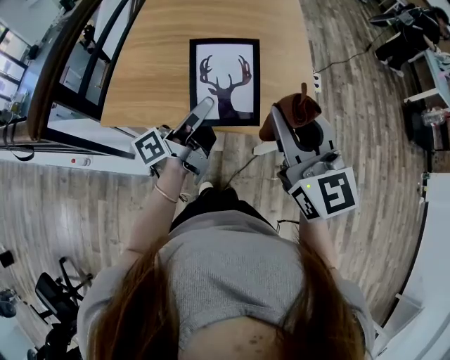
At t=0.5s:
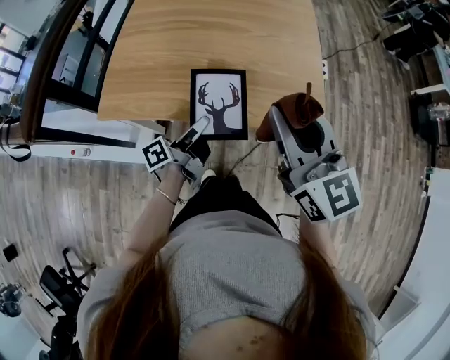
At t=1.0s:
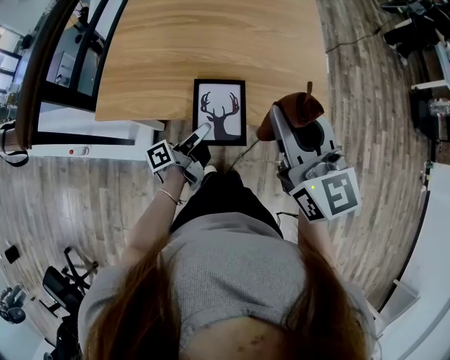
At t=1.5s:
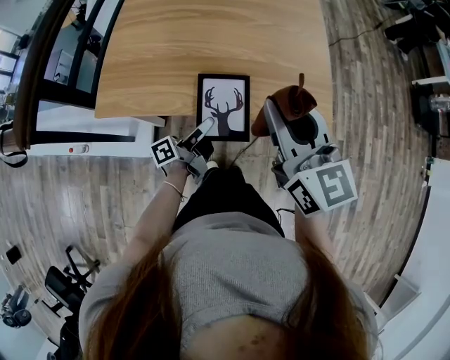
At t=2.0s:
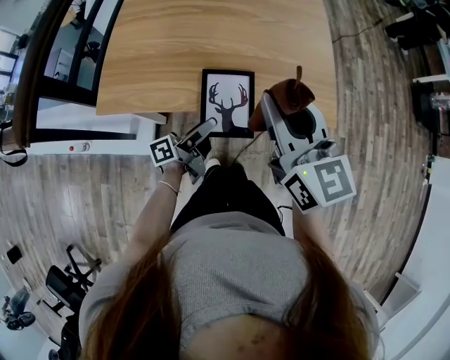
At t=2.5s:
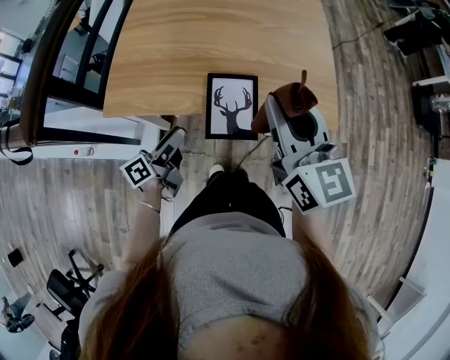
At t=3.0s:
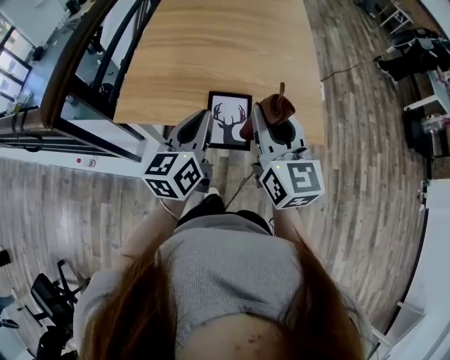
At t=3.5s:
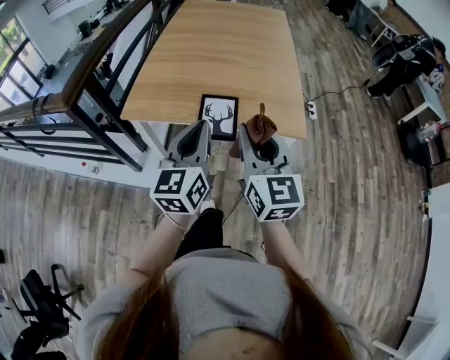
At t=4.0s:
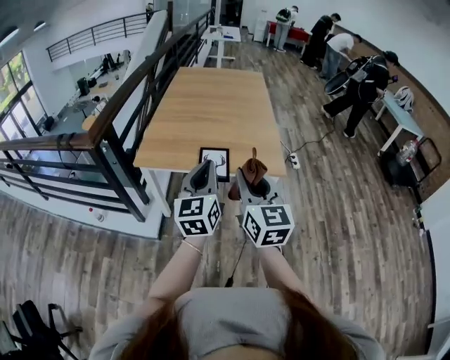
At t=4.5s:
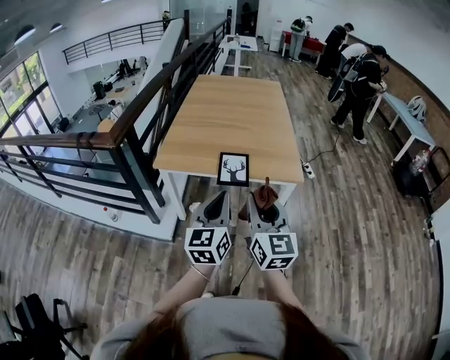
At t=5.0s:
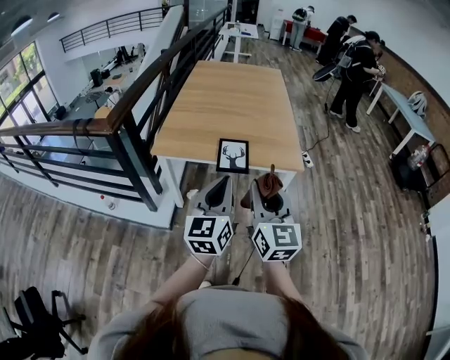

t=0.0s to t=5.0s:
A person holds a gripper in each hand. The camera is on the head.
t=0.0s to t=2.5s: The left gripper moves downward and to the left, some 25 cm, rotates roughly 20 degrees, and opens its fingers. The right gripper moves downward and to the left, approximately 10 cm.
t=2.5s to t=5.0s: The left gripper moves upward, backward and to the right, approximately 40 cm, rolls clockwise, seen from behind, by about 60 degrees, and closes. The right gripper moves backward, about 30 cm.

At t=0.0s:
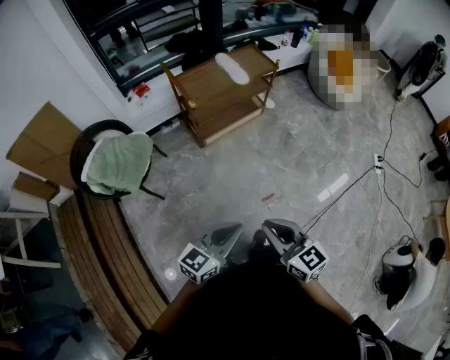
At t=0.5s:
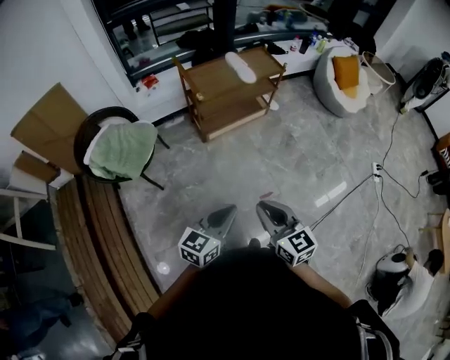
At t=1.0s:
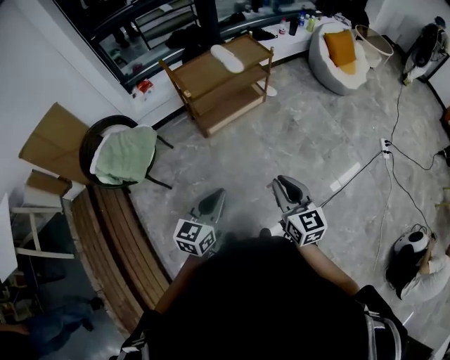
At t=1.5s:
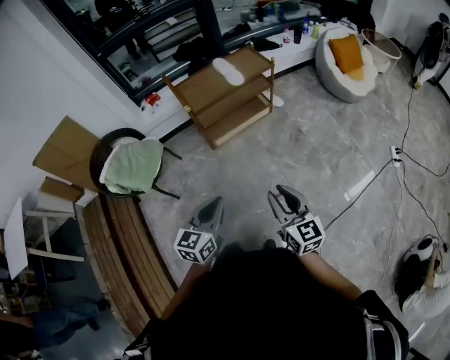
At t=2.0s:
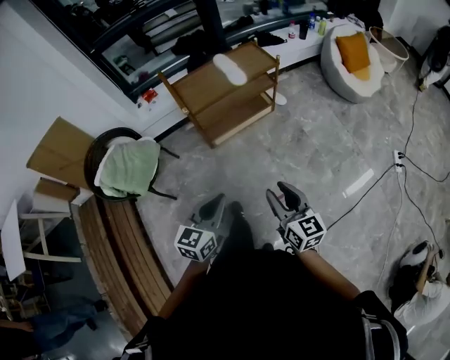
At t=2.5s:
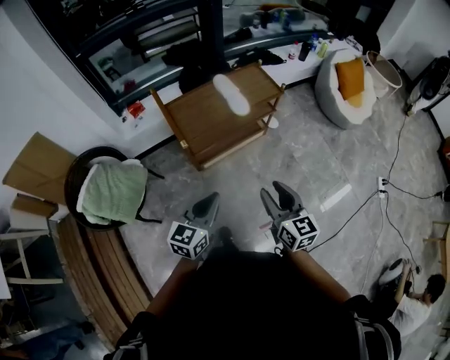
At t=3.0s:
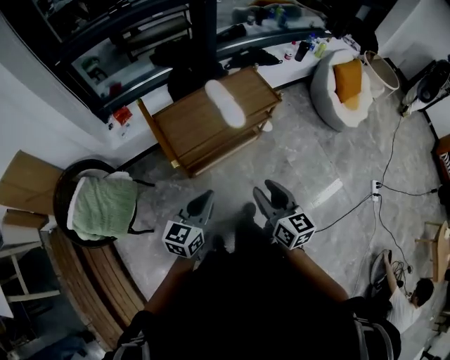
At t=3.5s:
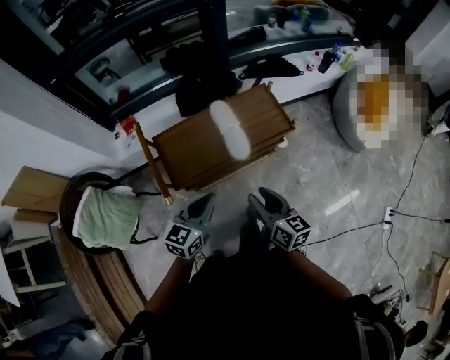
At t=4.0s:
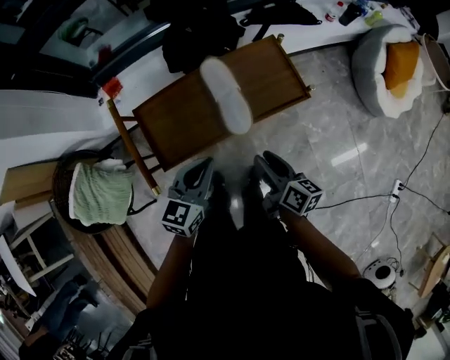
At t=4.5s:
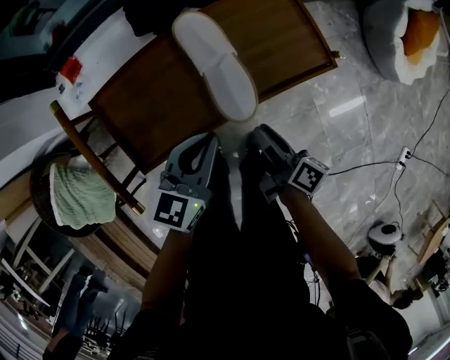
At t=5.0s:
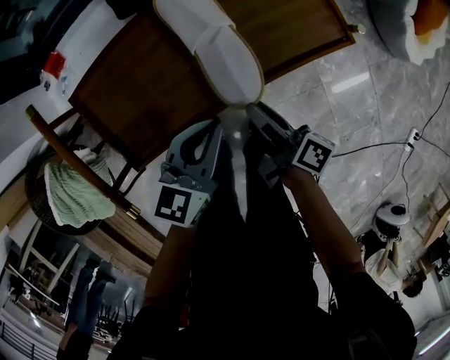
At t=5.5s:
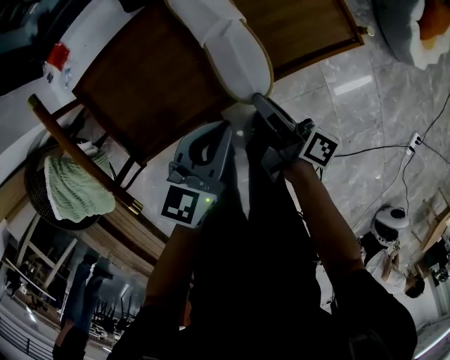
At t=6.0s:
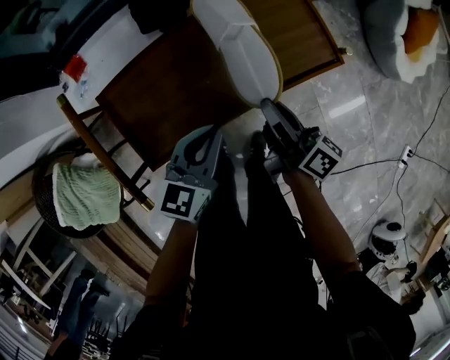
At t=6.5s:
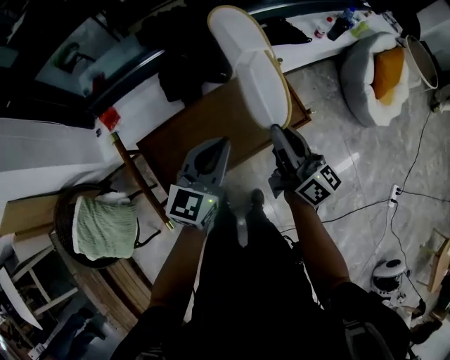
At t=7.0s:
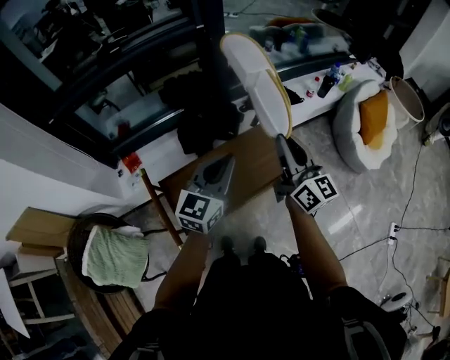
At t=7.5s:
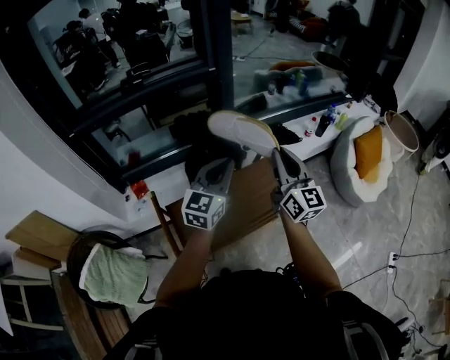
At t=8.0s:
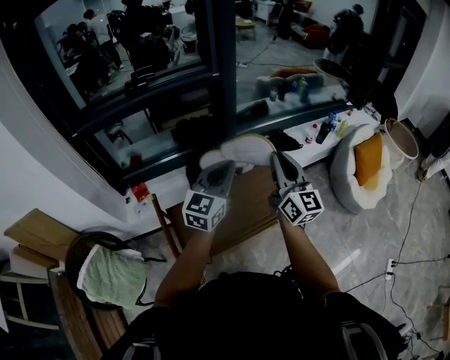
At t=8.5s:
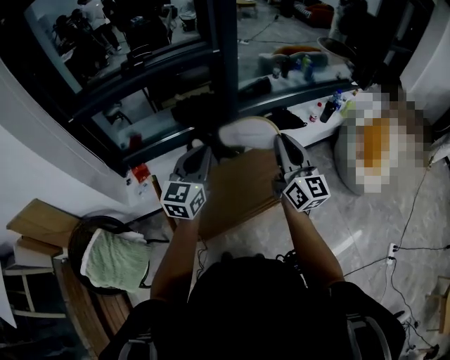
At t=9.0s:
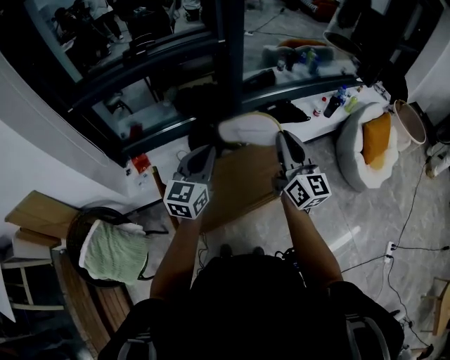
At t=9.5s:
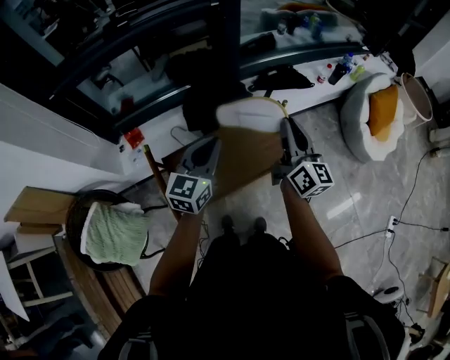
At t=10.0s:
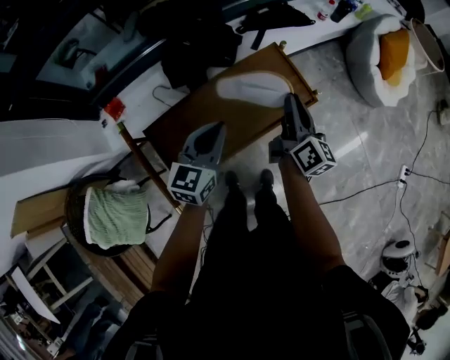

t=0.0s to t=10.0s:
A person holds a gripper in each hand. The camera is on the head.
t=0.0s to t=2.0s: The right gripper is displaced forward and to the right by roughly 15 cm, and opens. The left gripper goes about 10 cm forward, and changes its angle by some 20 degrees.
t=2.0s to t=4.0s: The two grippers travel together, forward, about 60 cm. The right gripper turns by about 40 degrees.
t=4.0s to t=6.0s: The left gripper goes about 15 cm downward and forward. The right gripper travels forward and downward by roughly 15 cm, swivels roughly 20 degrees, and closes.
t=6.0s to t=8.0s: Both grippers travel together upward, some 40 cm. The left gripper changes its angle by about 30 degrees, while the right gripper twists some 60 degrees counterclockwise, seen from behind.
t=8.0s to t=10.0s: Both grippers move downward, some 25 cm. The left gripper swivels roughly 20 degrees, while the right gripper swivels some 40 degrees.

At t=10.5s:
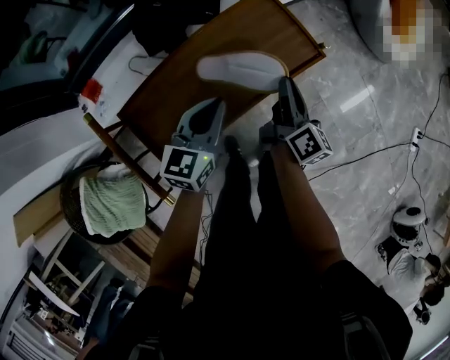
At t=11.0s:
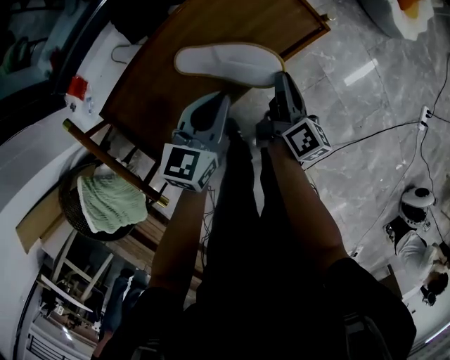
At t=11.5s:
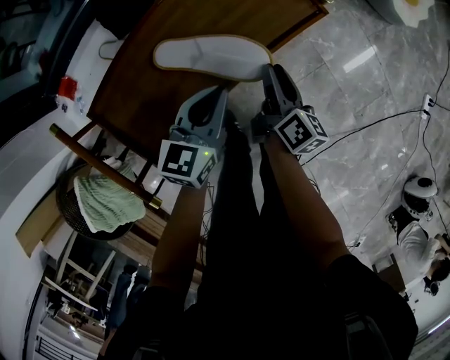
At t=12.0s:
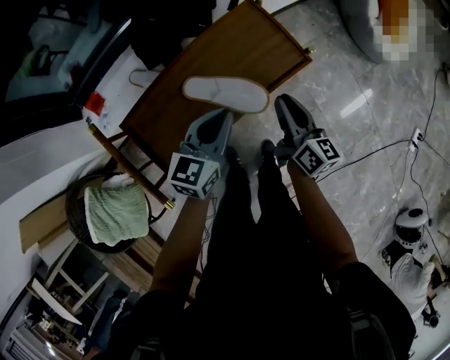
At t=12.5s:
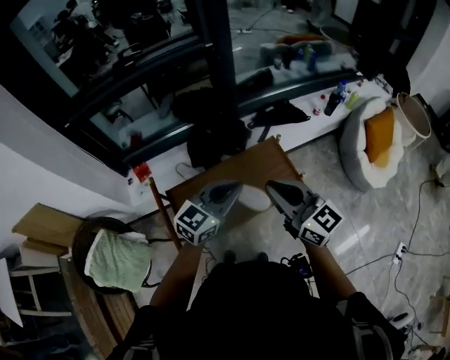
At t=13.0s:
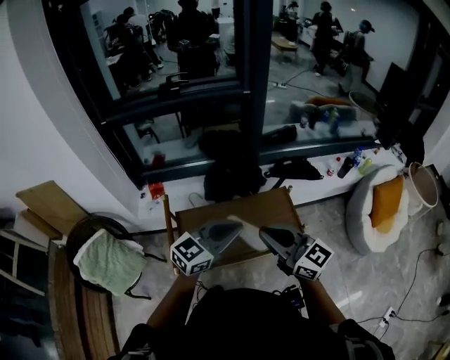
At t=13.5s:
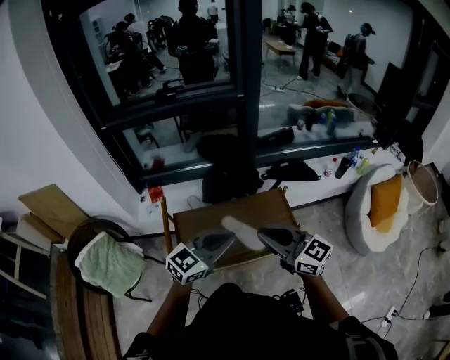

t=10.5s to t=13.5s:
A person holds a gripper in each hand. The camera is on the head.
t=10.5s to t=12.0s: The left gripper moves roughly 10 cm downward and comes back. Meanwhile the right gripper moves approximately 10 cm downward and comes back, and turns by about 20 degrees.
t=12.0s to t=13.5s: The two grippers go approximately 30 cm upward. The left gripper swivels approximately 20 degrees, while the right gripper swivels approximately 70 degrees.

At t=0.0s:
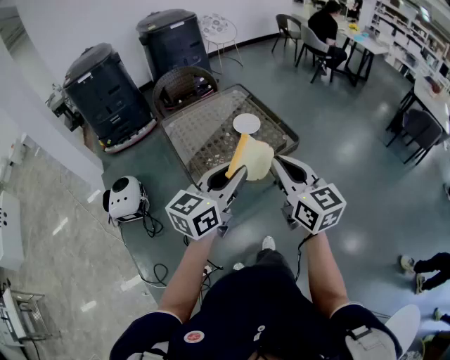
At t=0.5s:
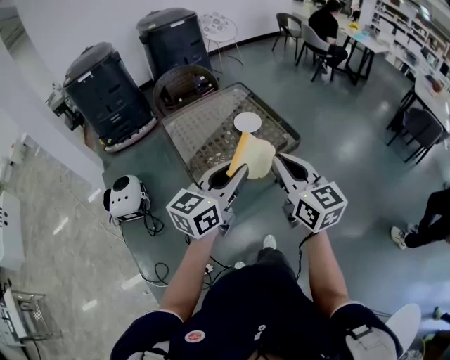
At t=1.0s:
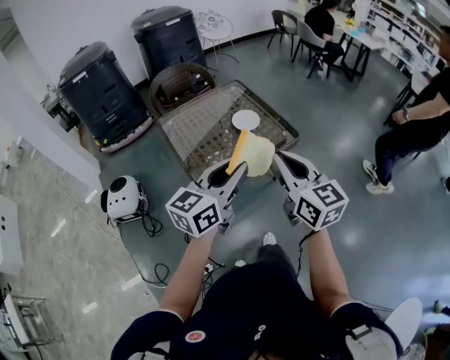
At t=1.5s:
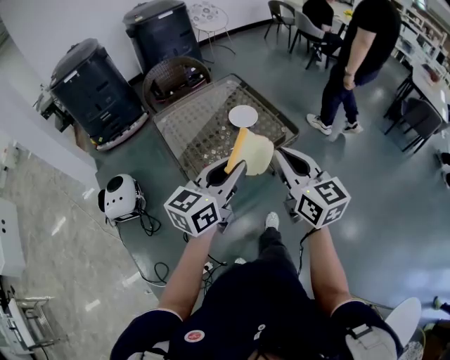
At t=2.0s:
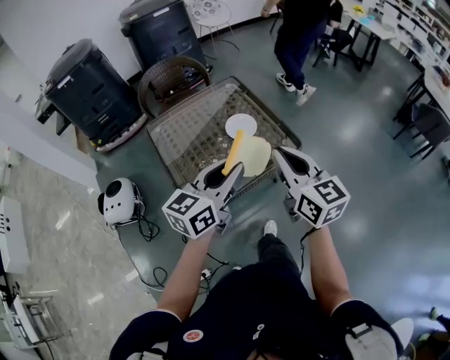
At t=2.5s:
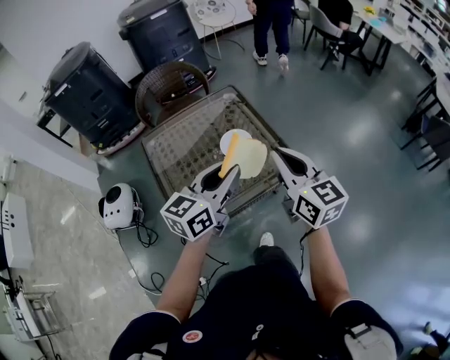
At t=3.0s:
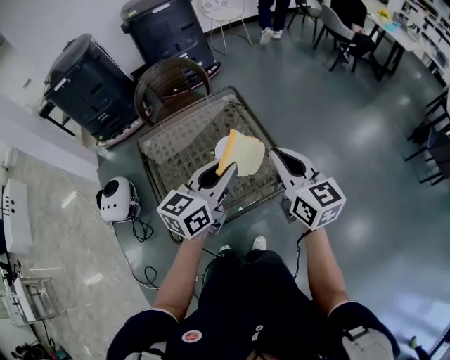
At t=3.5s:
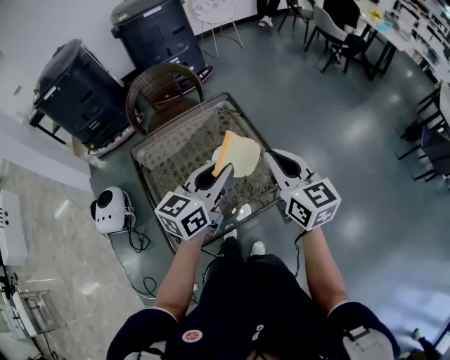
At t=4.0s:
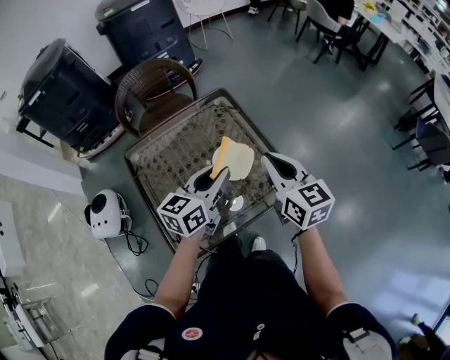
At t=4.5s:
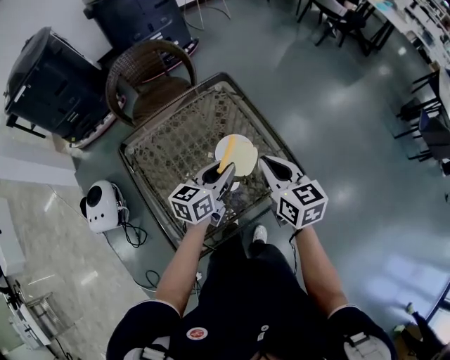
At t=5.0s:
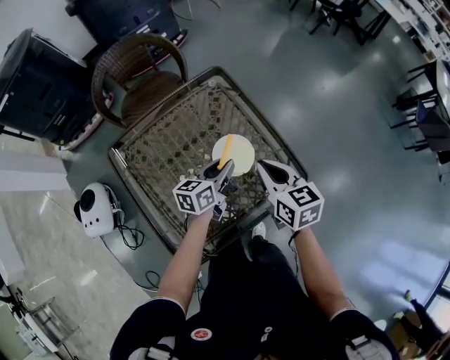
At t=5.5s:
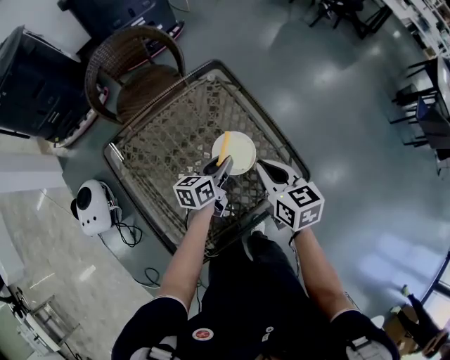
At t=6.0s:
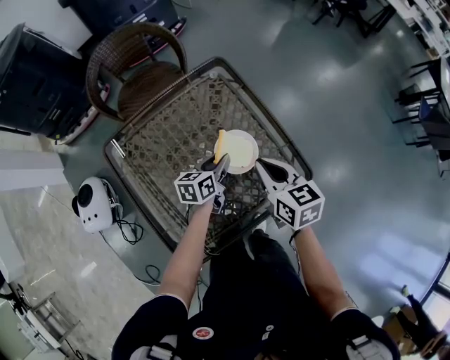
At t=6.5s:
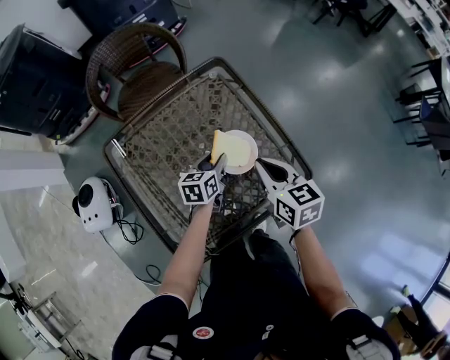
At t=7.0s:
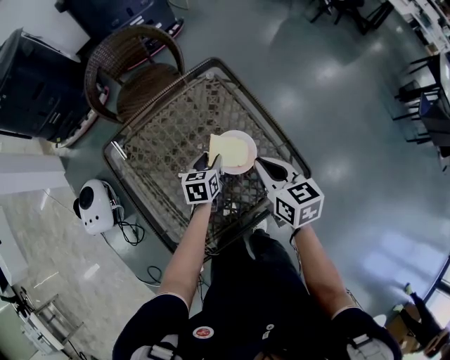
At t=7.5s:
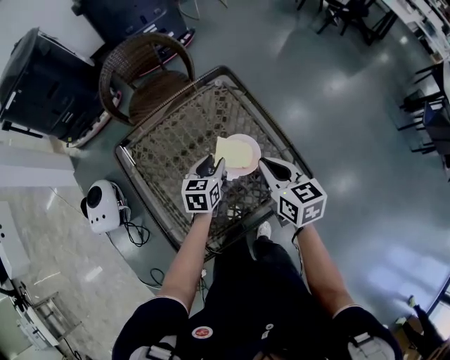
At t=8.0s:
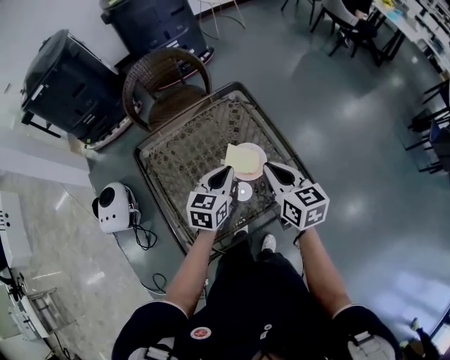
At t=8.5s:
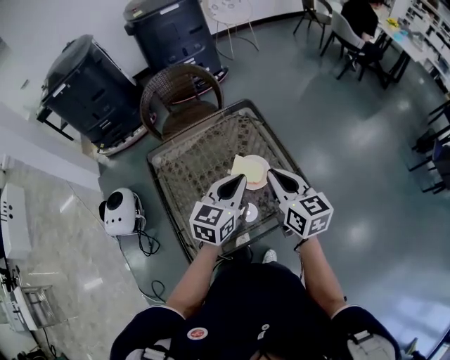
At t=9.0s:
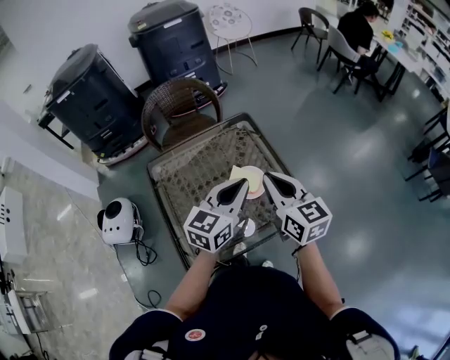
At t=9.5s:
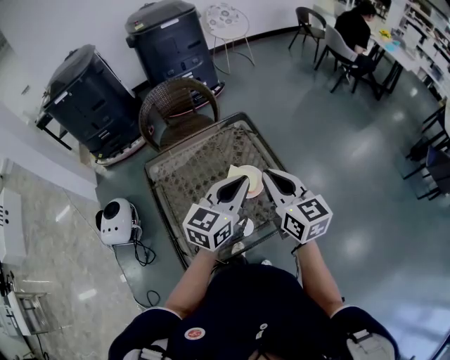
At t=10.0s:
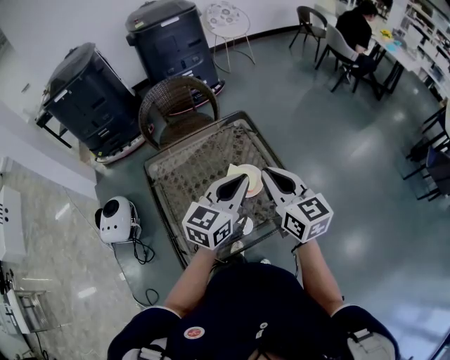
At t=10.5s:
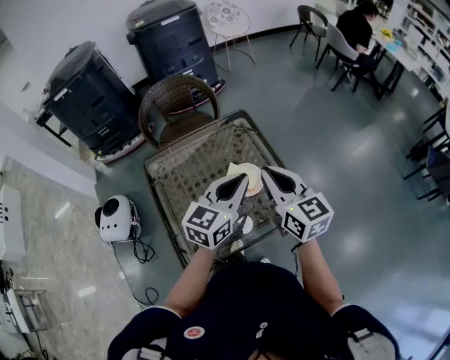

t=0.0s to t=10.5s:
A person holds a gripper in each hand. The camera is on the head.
t=0.0s to t=2.0s: The grippers both shift forward by approximately 15 cm.
t=2.0s to t=4.0s: The grippers both shift forward by about 25 cm.
t=4.0s to t=6.5s: The right gripper travels downward by about 15 cm, and turns by approximately 20 degrees. The left gripper moves downward, approximately 25 cm, and turns by about 30 degrees.
t=6.5s to t=8.5s: The right gripper shifts approximately 10 cm upward; the left gripper travels upward and backward by approximately 25 cm, turns by approximately 30 degrees, and closes.
t=8.5s to t=10.5s: Both grippers move upward, about 5 cm.
